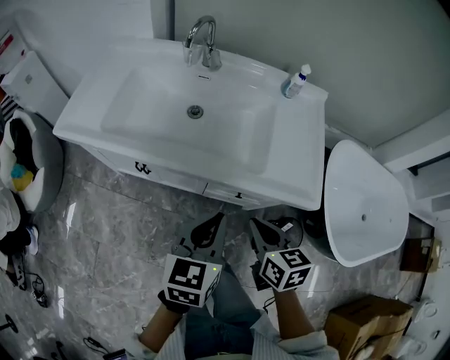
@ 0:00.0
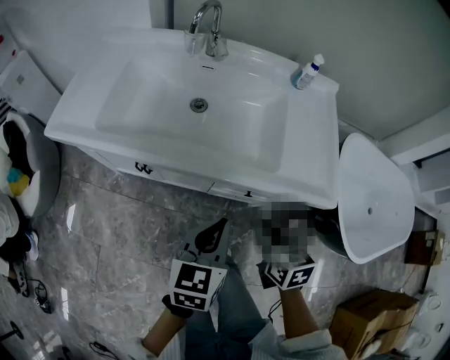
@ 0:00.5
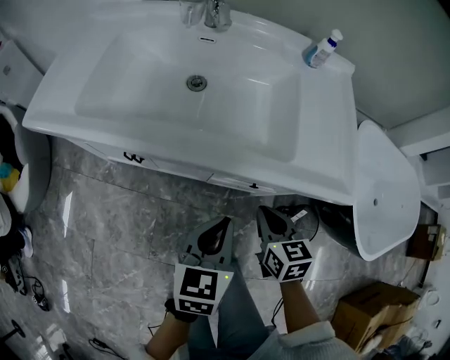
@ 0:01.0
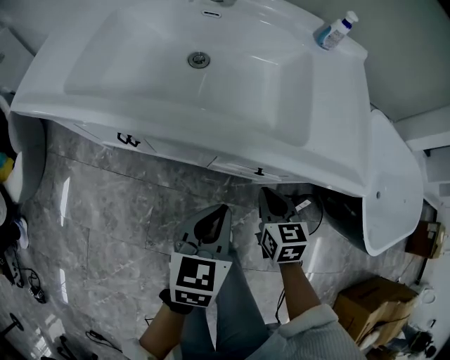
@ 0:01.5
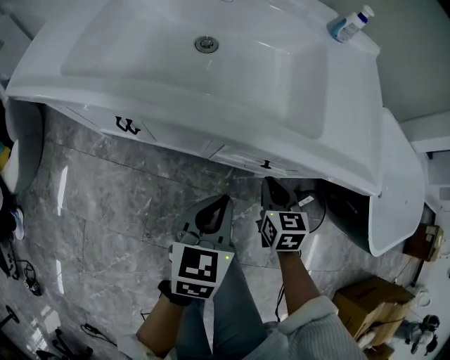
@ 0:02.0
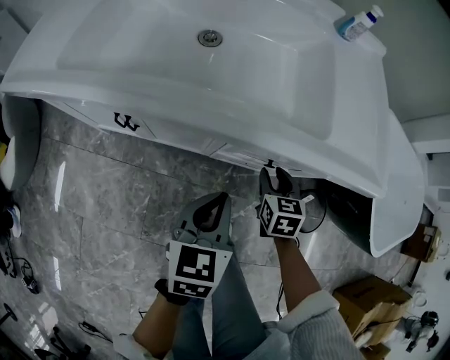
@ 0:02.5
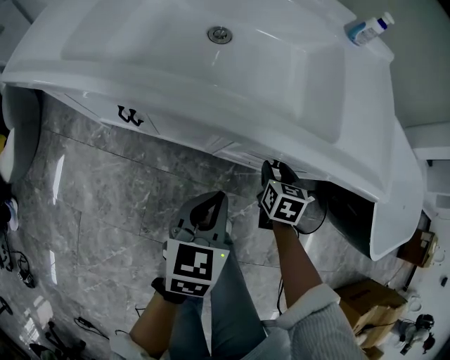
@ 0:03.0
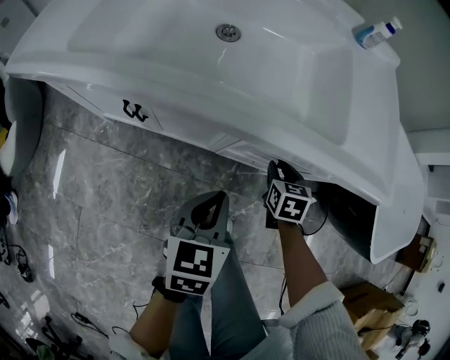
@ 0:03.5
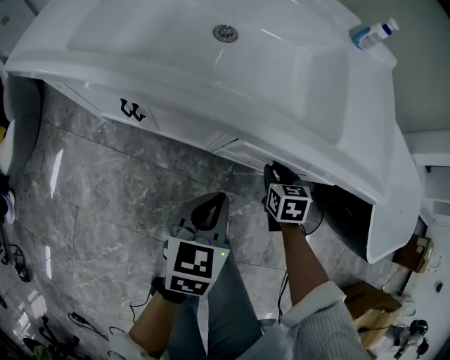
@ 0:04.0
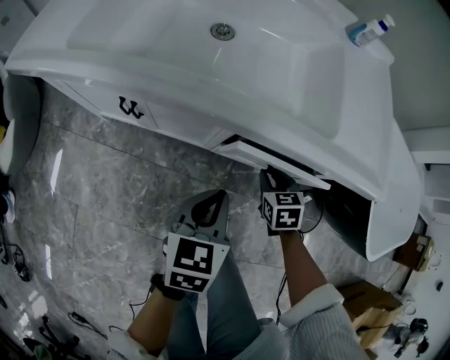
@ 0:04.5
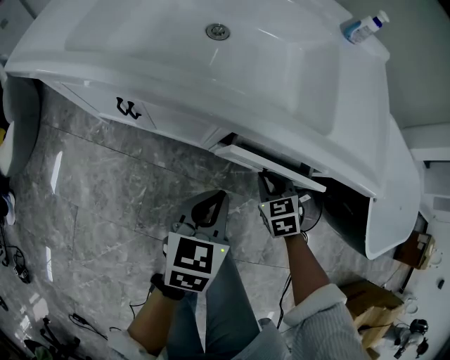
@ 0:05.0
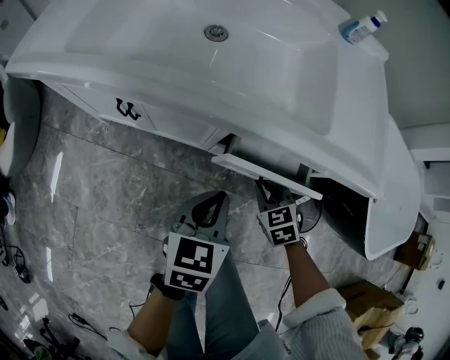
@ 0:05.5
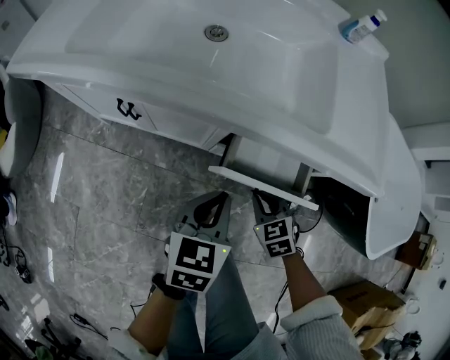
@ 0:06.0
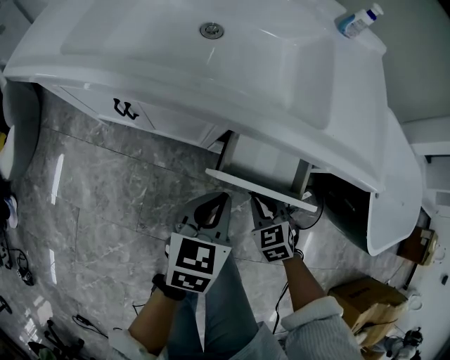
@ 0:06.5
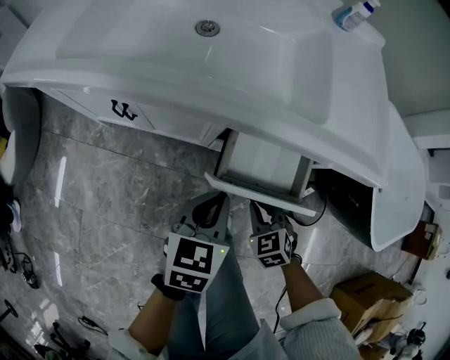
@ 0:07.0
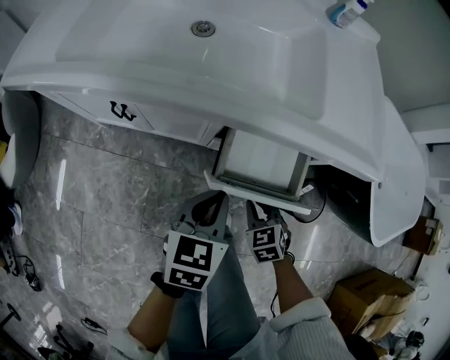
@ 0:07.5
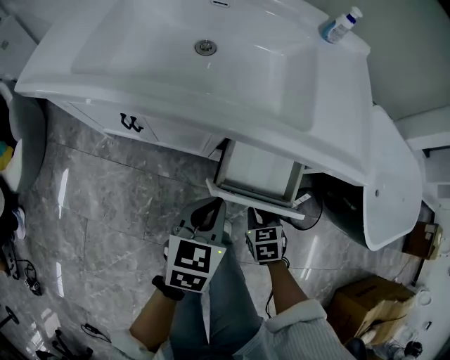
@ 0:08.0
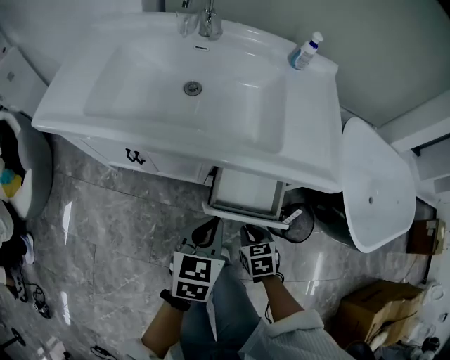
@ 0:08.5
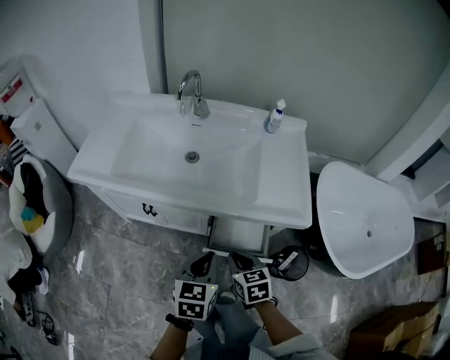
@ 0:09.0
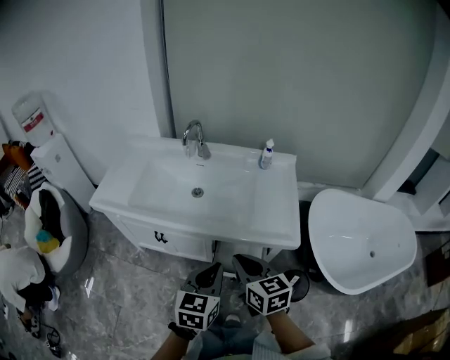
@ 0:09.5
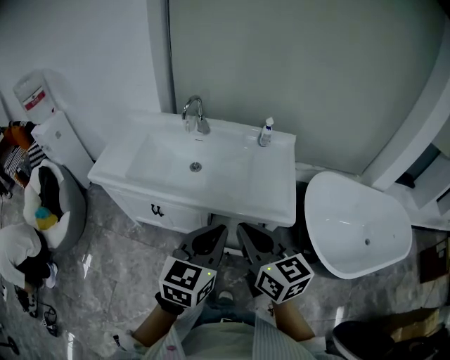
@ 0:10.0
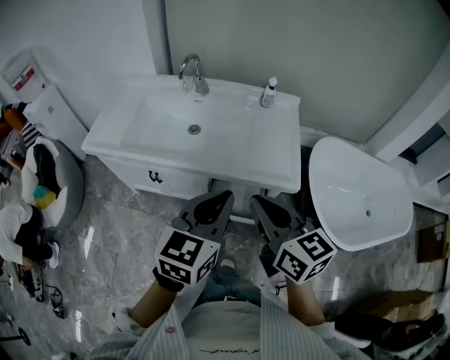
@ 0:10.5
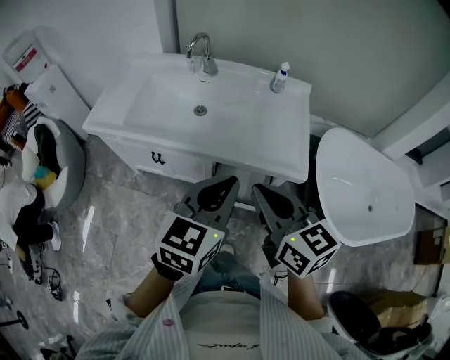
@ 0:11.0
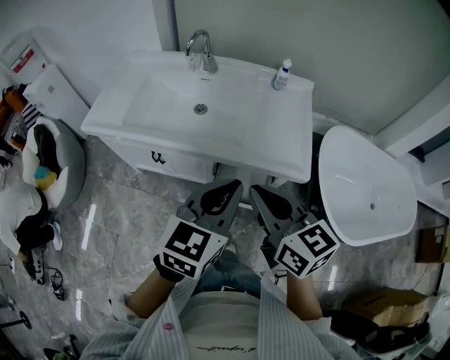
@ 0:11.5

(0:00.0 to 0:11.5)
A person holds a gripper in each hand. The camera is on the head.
0:00.0 - 0:02.0: Both grippers travel together downward, about 20 cm.
0:02.0 - 0:04.0: The right gripper heads downward, covering some 5 cm, and opens up.
0:04.0 - 0:06.0: The right gripper heads backward, covering roughly 10 cm, and changes its angle by about 20 degrees.
0:06.0 - 0:07.5: The grippers stay close to where they were, moving slightly.
0:07.5 - 0:09.5: Both grippers travel together upward, approximately 35 cm. The right gripper tilts its fingers about 30 degrees upward.
0:09.5 - 0:11.5: The two grippers go approximately 10 cm upward.

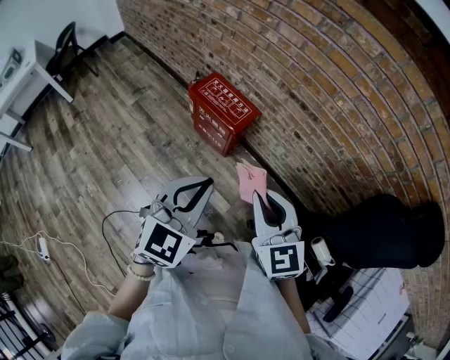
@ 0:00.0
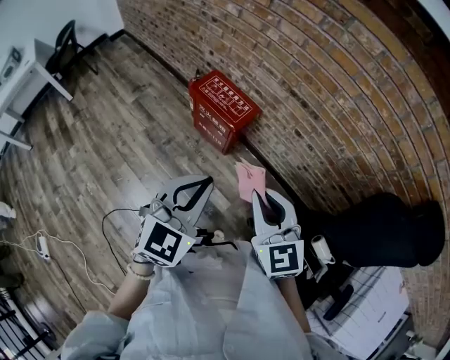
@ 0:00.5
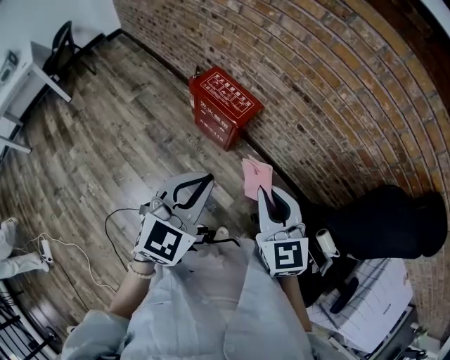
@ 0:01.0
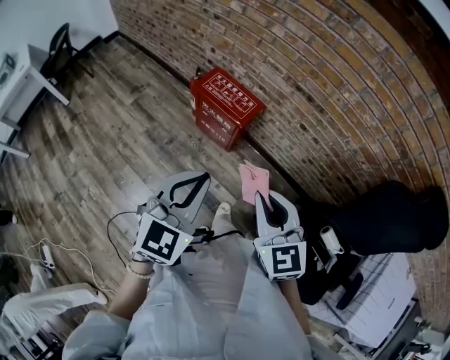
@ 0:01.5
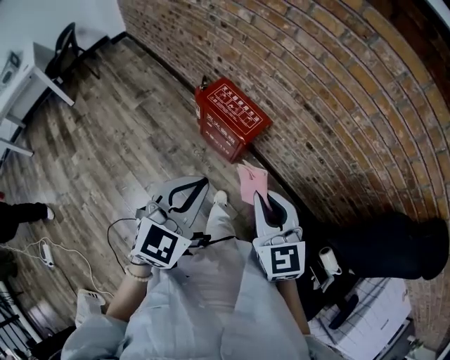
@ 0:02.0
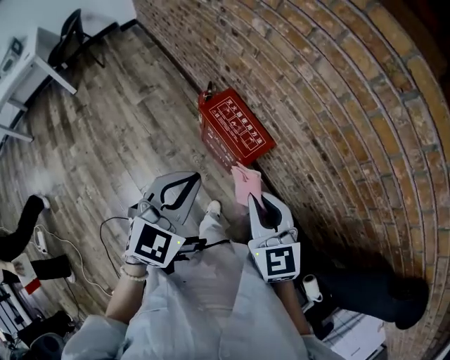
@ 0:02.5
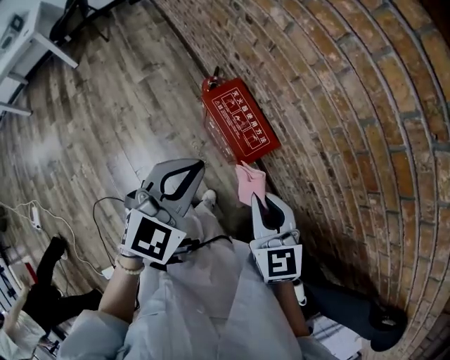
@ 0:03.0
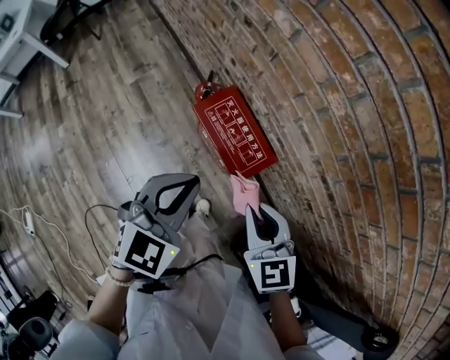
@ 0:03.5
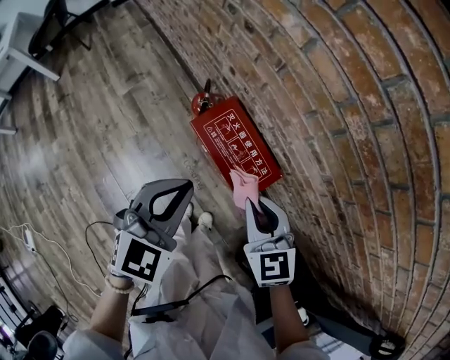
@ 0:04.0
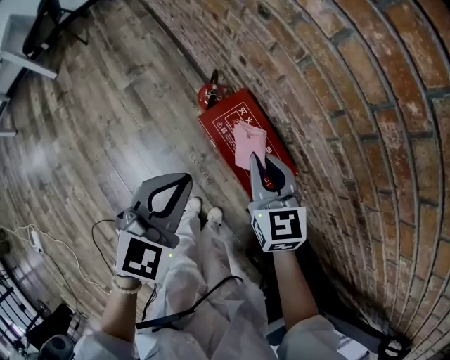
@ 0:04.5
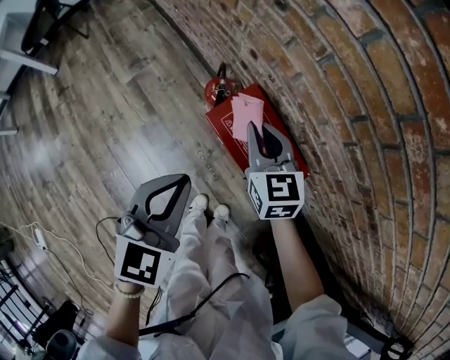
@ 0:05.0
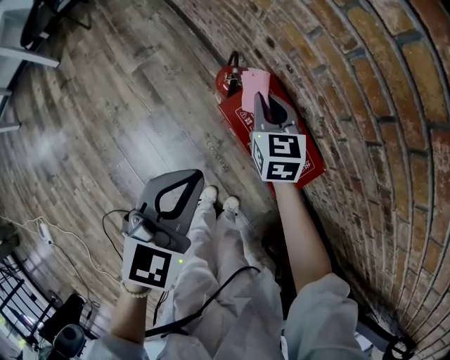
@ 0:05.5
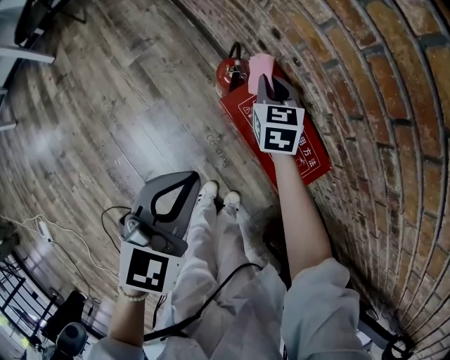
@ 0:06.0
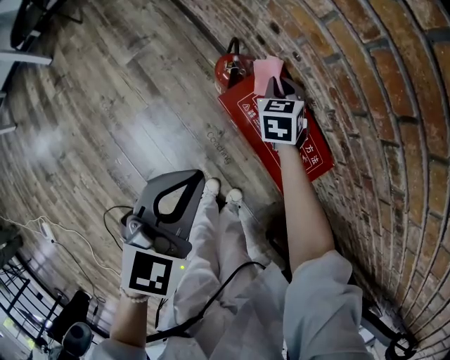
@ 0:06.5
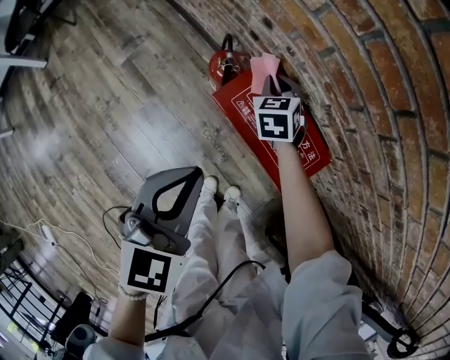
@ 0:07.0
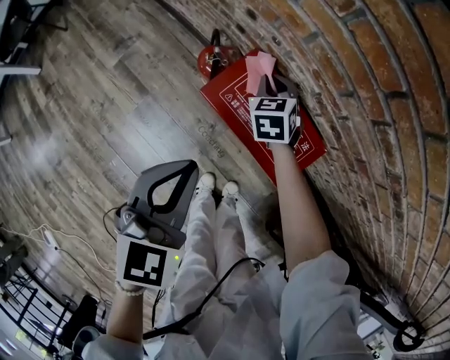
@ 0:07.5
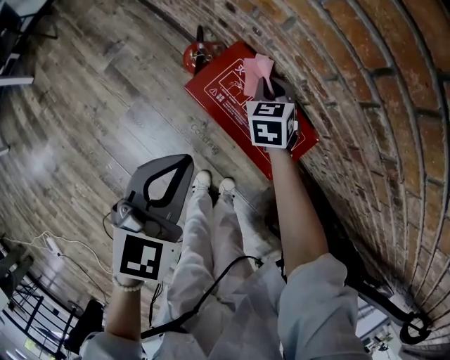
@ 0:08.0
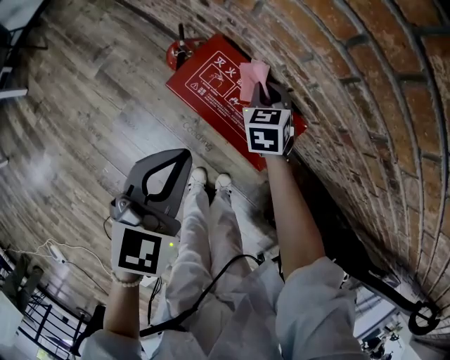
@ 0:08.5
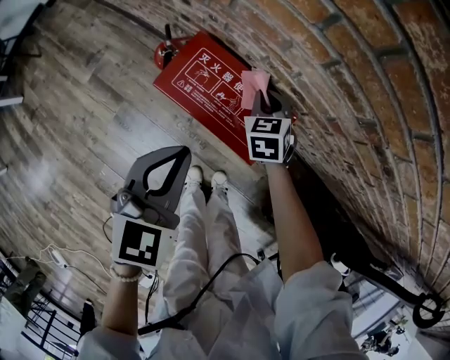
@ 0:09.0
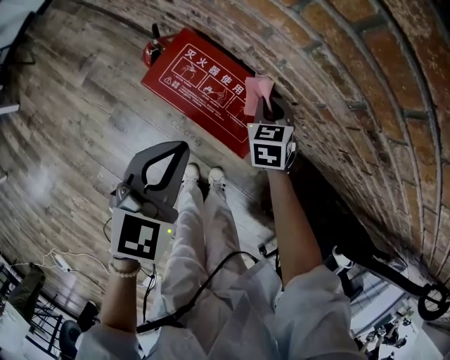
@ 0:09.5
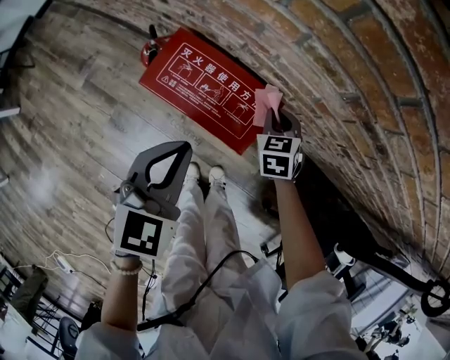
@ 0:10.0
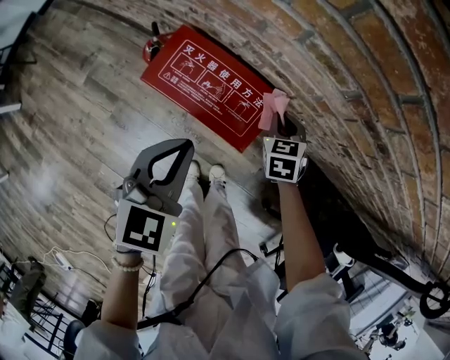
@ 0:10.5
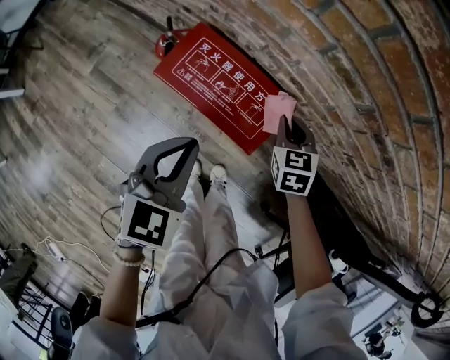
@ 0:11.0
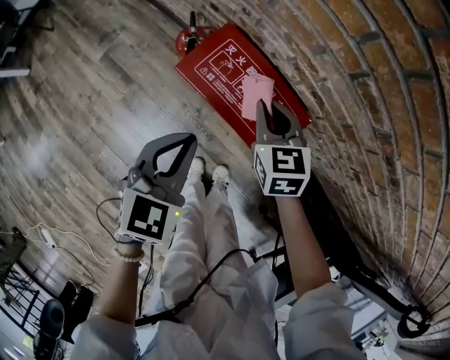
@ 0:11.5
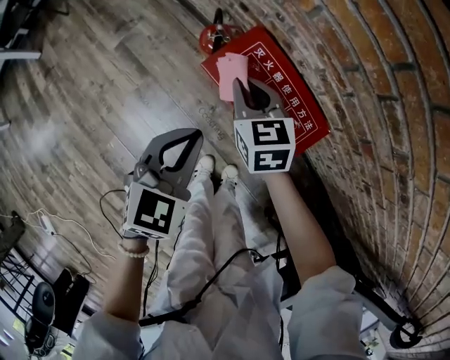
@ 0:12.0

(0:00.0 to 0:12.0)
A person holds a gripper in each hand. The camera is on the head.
0:00.0 - 0:02.0: The right gripper moves forward and to the left, roughly 10 cm, while the left gripper heads to the left and forward, covering approximately 10 cm.
0:02.0 - 0:04.0: The left gripper travels forward by some 30 cm, while the right gripper moves forward and downward, some 35 cm.
0:04.0 - 0:06.0: The left gripper goes some 15 cm downward and to the left. Meanwhile the right gripper heads forward, downward and to the left, covering roughly 35 cm.
0:06.0 - 0:08.0: The right gripper moves to the right and downward, about 15 cm. The left gripper goes approximately 5 cm to the right.
0:08.0 - 0:10.0: The left gripper shifts about 10 cm to the right; the right gripper goes roughly 20 cm to the right and backward.
0:10.0 - 0:12.0: The right gripper moves about 30 cm, and rotates approximately 30 degrees; the left gripper ends up about 10 cm from where it was.

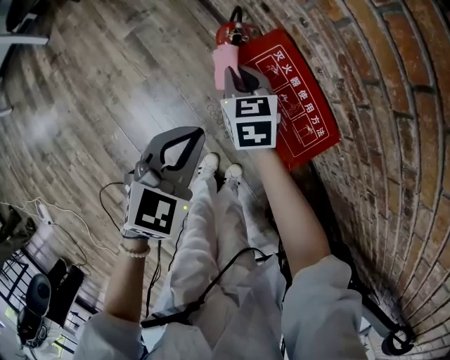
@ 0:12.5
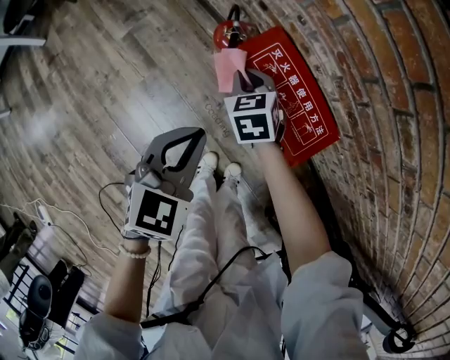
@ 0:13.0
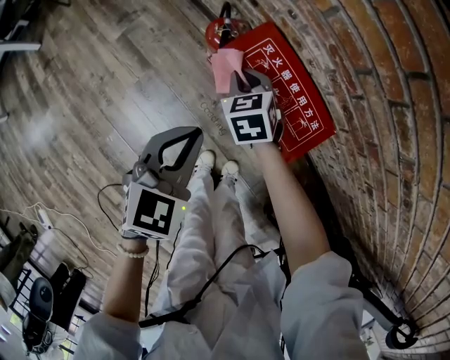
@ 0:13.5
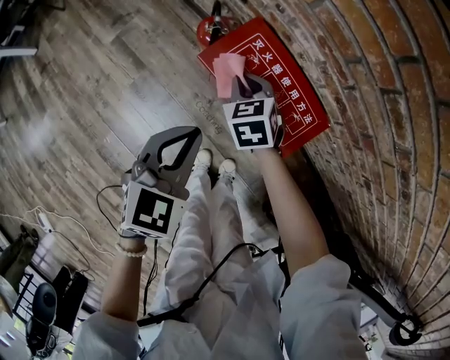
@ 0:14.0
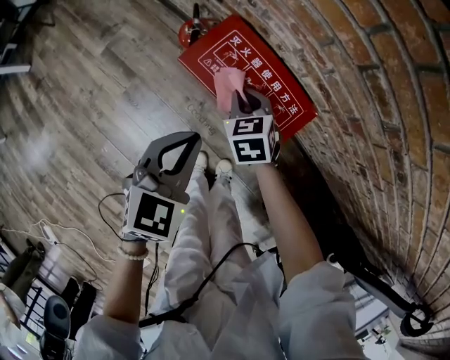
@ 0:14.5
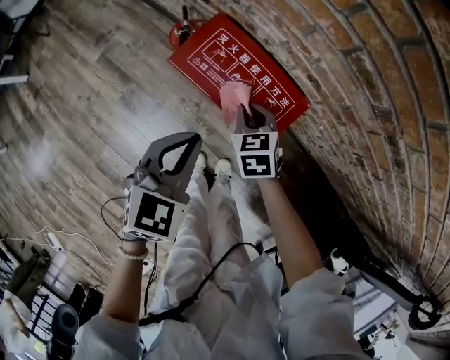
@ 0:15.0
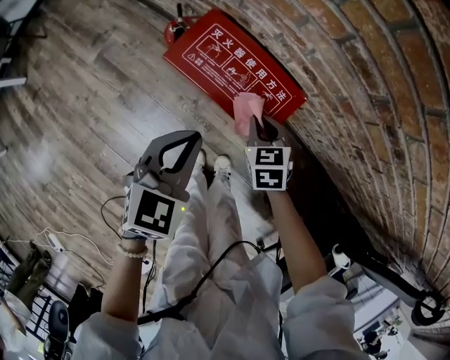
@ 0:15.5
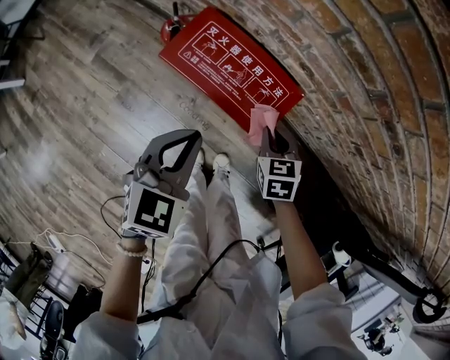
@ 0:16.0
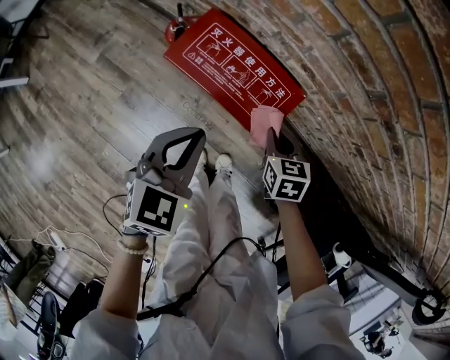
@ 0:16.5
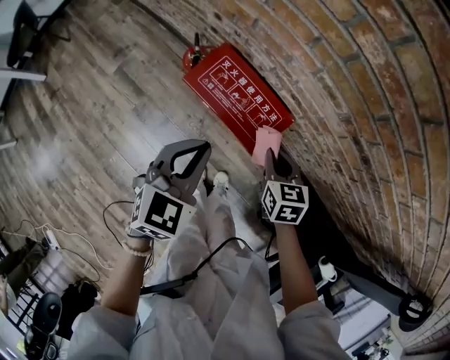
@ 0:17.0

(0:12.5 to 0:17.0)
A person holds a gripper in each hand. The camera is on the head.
0:12.5 - 0:14.5: The left gripper goes approximately 5 cm to the right; the right gripper heads to the right, covering roughly 15 cm.
0:14.5 - 0:17.0: The left gripper is displaced upward by about 10 cm. The right gripper moves to the right, upward and backward, roughly 20 cm, and swivels approximately 20 degrees.
